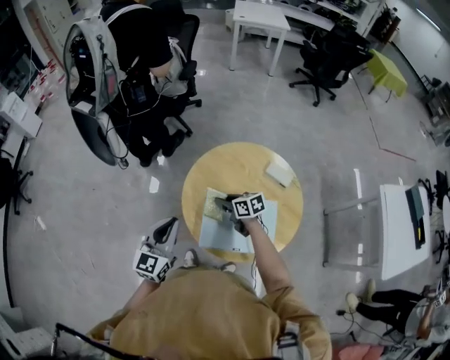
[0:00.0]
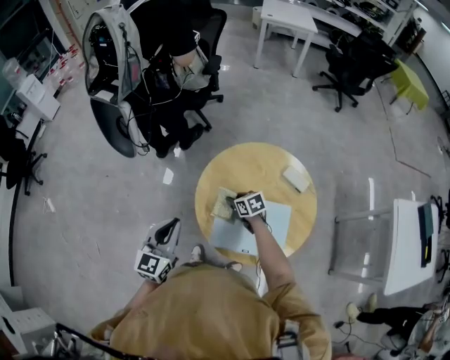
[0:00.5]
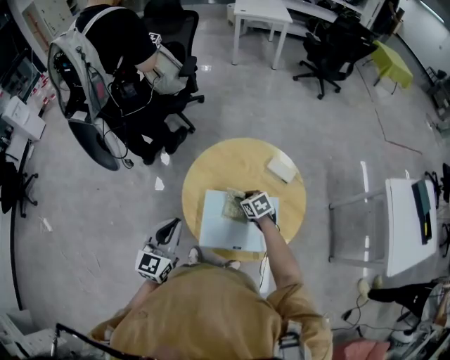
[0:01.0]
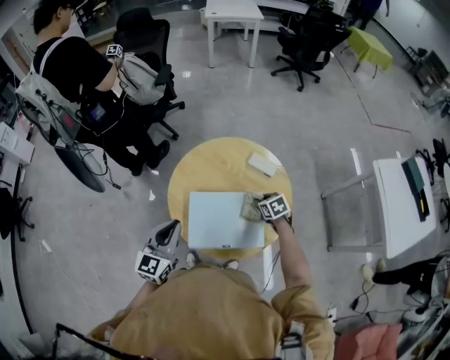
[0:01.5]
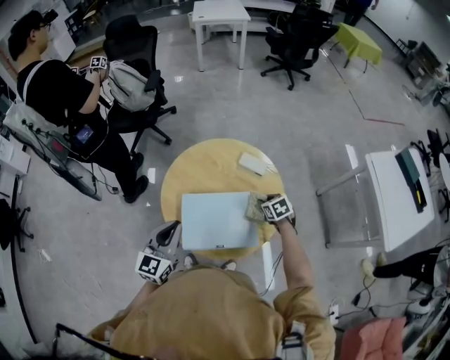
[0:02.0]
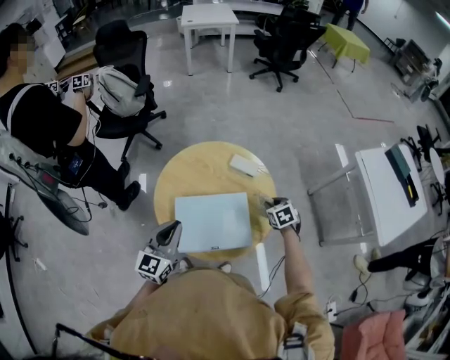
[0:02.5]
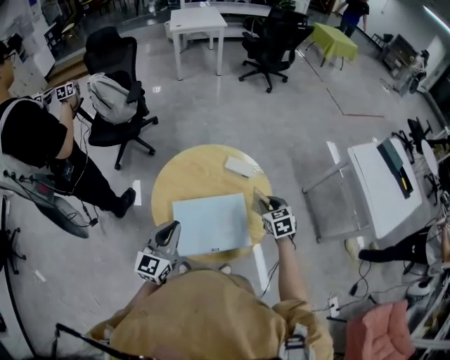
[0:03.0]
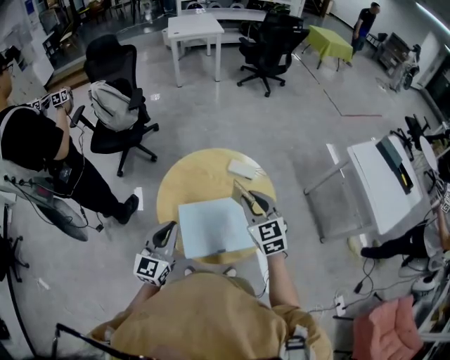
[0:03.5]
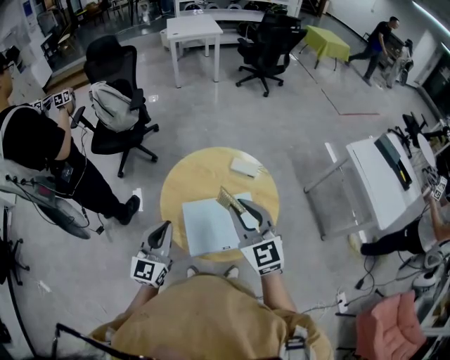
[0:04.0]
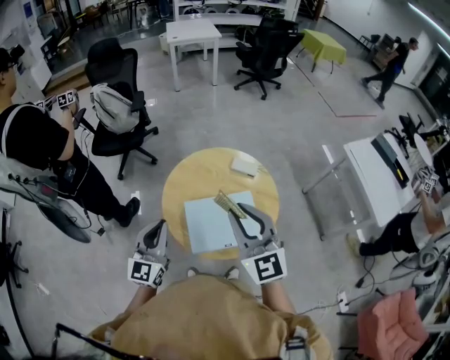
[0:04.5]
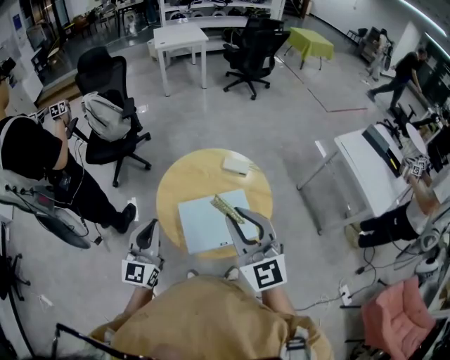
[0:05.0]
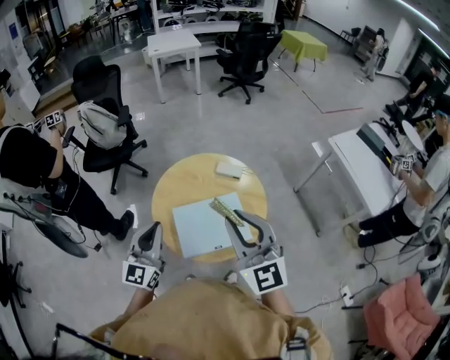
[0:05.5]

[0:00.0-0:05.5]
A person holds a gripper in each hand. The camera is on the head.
0:00.0 to 0:02.0: The left gripper heads to the right, covering some 10 cm. Meanwhile the right gripper is displaced to the right by some 30 cm, and turns by approximately 30 degrees.
0:02.0 to 0:03.5: The right gripper heads upward, covering some 30 cm, and angles its fingers upward, by roughly 40 degrees, while the left gripper ends up some 5 cm from where it was.
0:03.5 to 0:05.5: The left gripper moves upward, some 5 cm, while the right gripper shifts roughly 20 cm backward and upward, and swivels approximately 20 degrees.

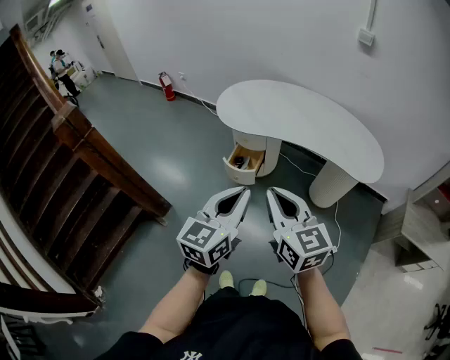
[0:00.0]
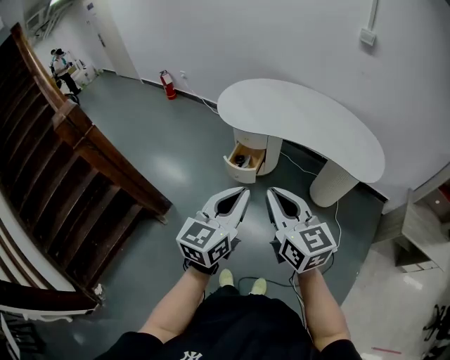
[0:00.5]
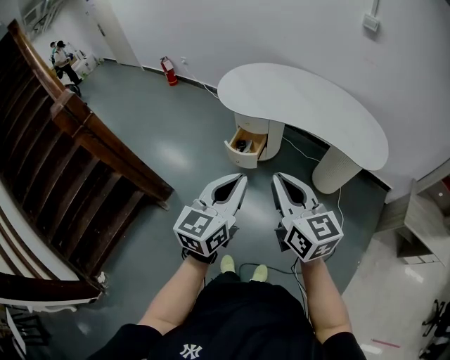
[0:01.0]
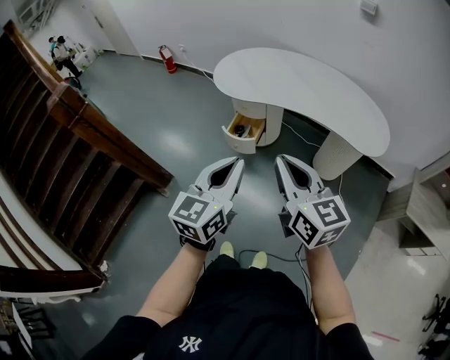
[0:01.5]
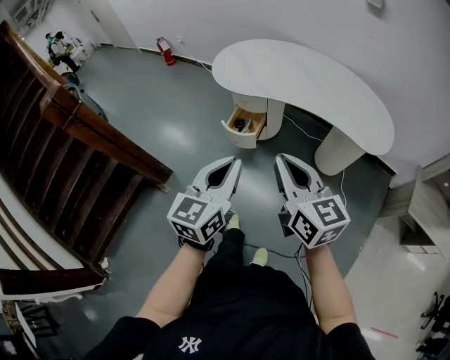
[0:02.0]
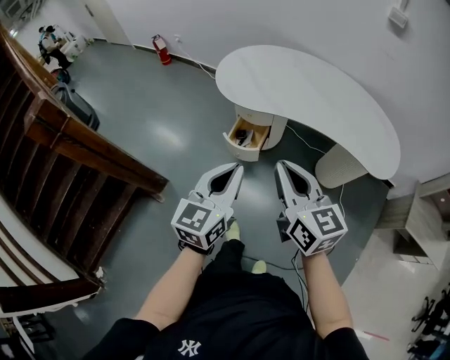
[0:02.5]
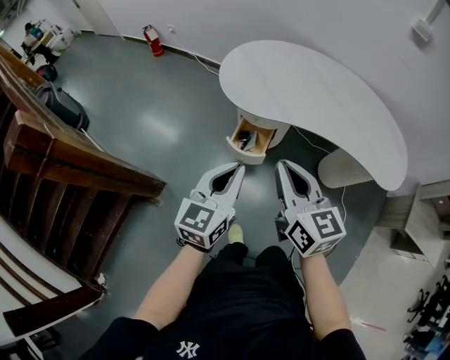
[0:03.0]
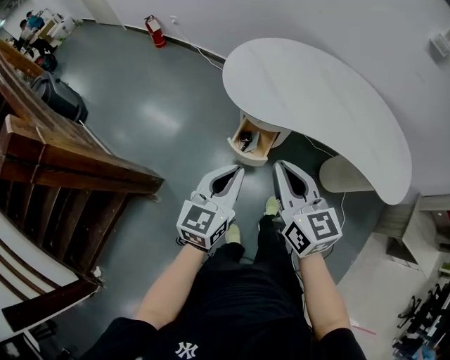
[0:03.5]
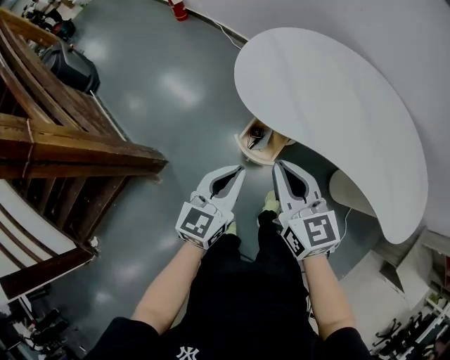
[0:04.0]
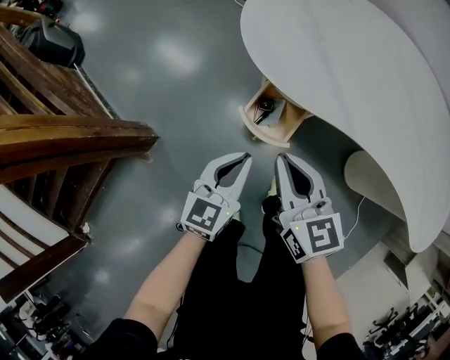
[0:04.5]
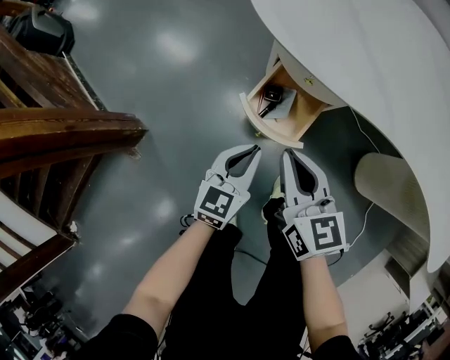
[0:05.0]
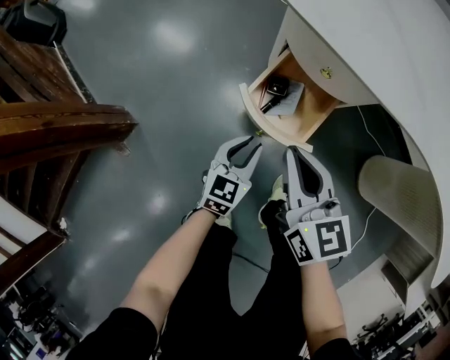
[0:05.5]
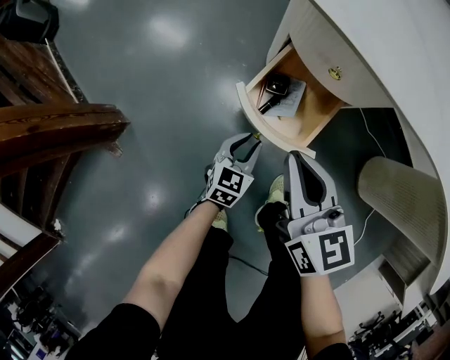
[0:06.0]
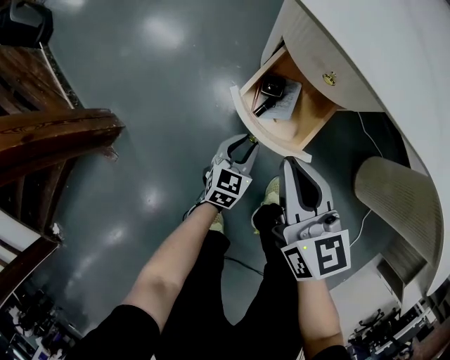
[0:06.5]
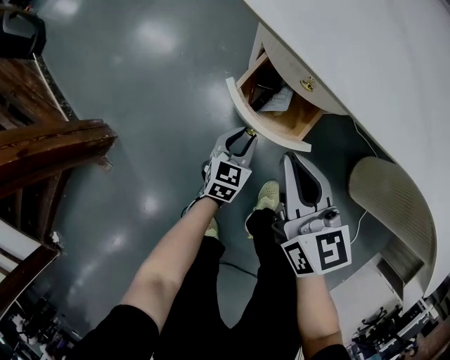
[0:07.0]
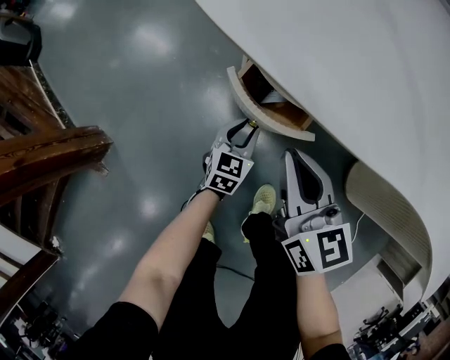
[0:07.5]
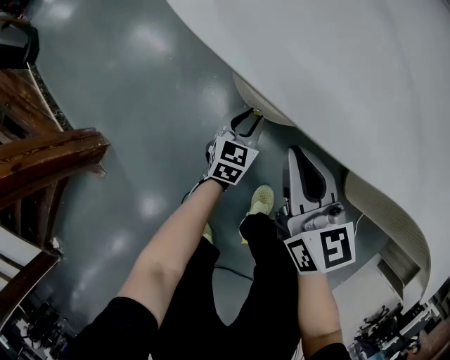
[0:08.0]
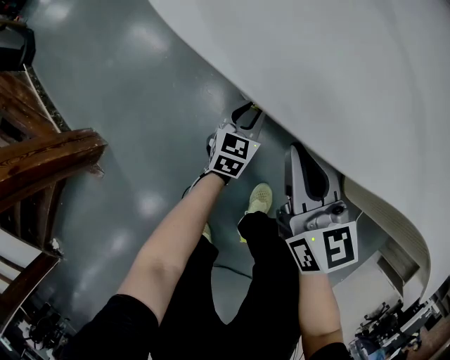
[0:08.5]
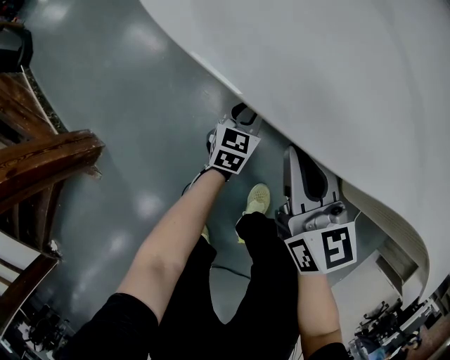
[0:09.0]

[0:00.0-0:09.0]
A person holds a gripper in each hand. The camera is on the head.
0:00.0 to 0:02.0: The right gripper shifts approximately 5 cm to the right.
0:02.0 to 0:04.5: The grippers both shift forward and downward by about 50 cm.
0:04.5 to 0:07.0: The right gripper is displaced downward by roughly 25 cm; the left gripper shifts approximately 40 cm downward, and opens its fingers.
0:07.0 to 0:09.0: The right gripper moves to the right, about 5 cm, while the left gripper heads forward and to the right, covering some 15 cm.

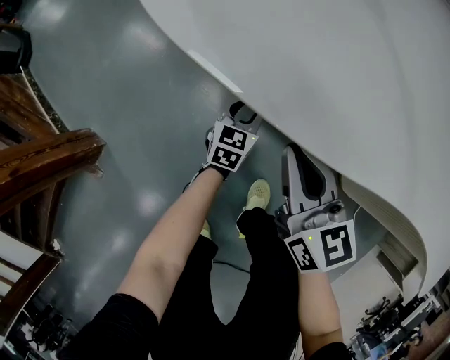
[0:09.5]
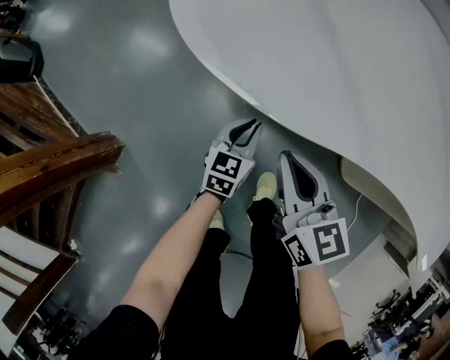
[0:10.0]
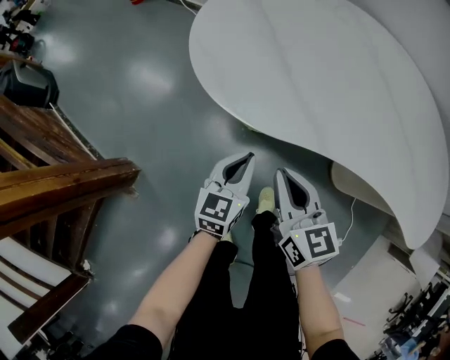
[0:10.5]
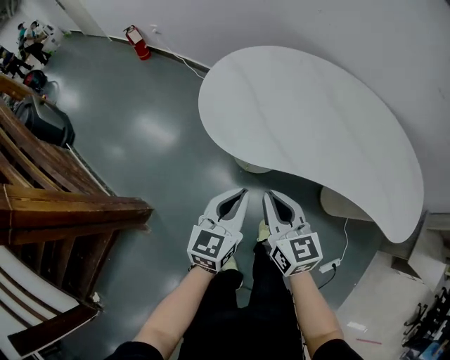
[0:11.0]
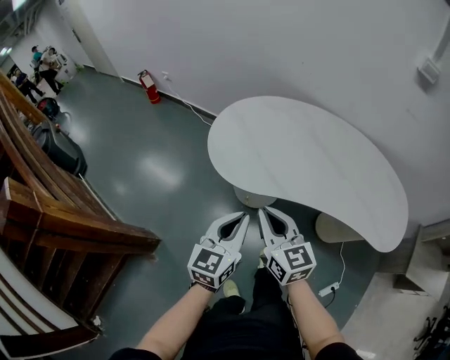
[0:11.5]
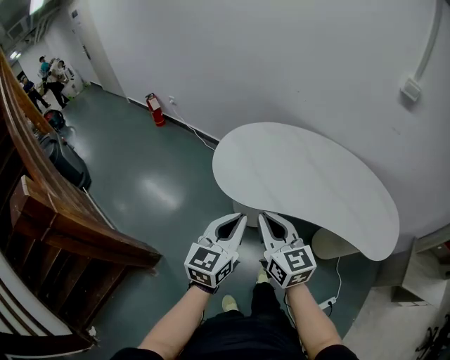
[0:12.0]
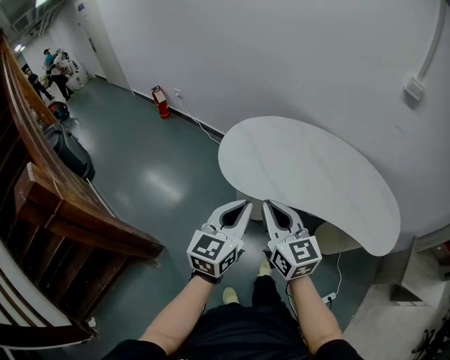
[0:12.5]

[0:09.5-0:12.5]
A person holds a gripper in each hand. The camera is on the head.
0:09.5 to 0:11.0: The right gripper heads upward, covering roughly 30 cm. Meanwhile the left gripper heads upward, covering roughly 50 cm, and closes.
0:11.0 to 0:12.5: Both grippers move upward, about 25 cm.

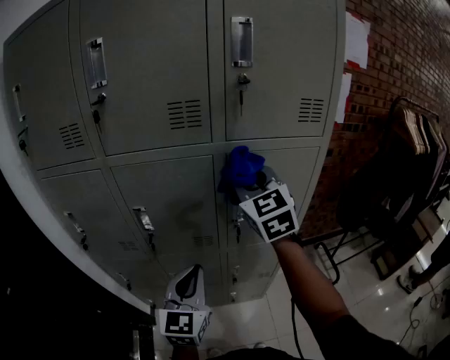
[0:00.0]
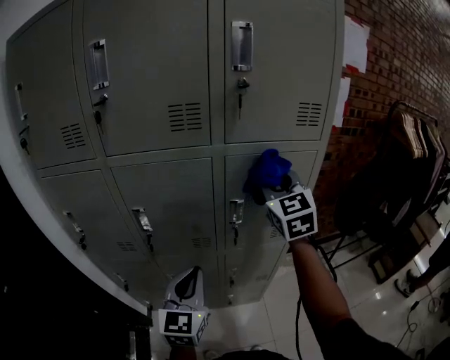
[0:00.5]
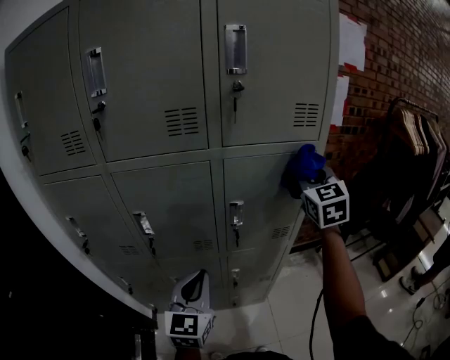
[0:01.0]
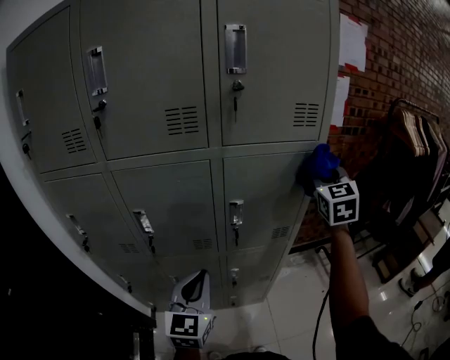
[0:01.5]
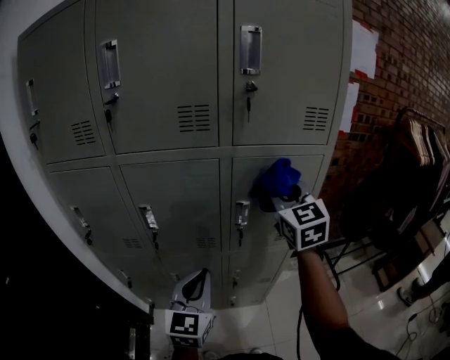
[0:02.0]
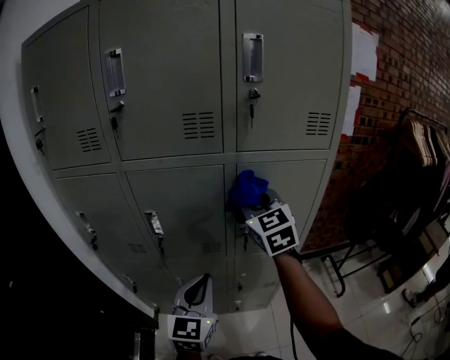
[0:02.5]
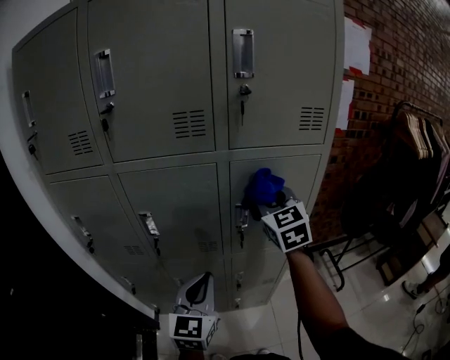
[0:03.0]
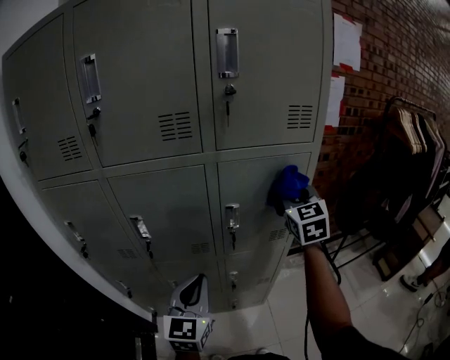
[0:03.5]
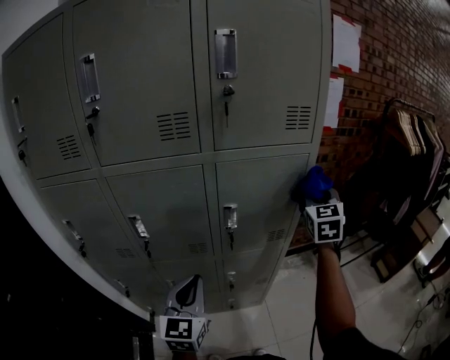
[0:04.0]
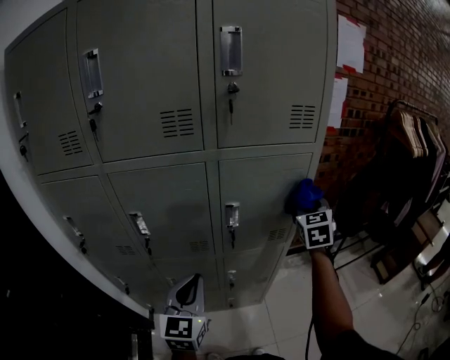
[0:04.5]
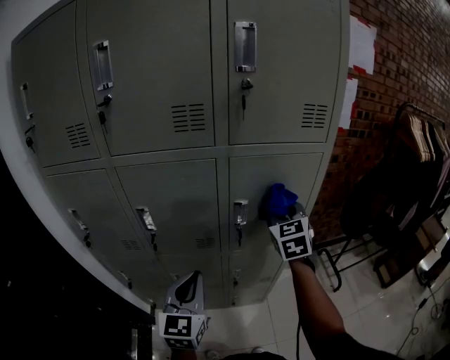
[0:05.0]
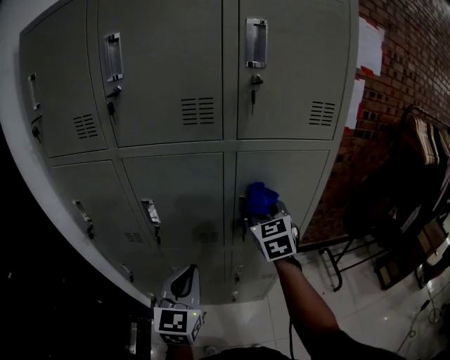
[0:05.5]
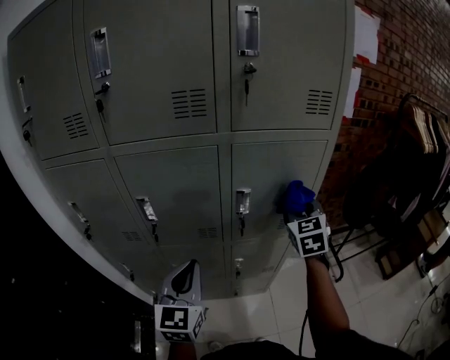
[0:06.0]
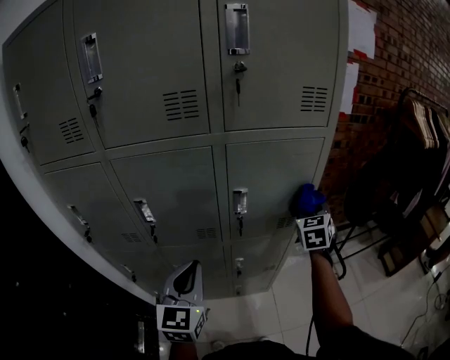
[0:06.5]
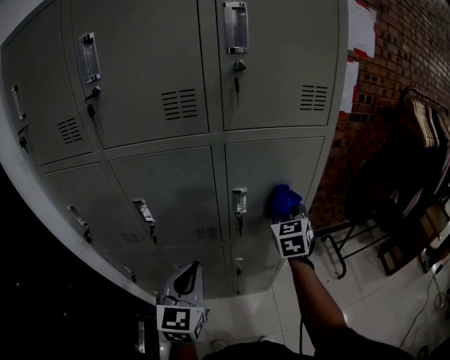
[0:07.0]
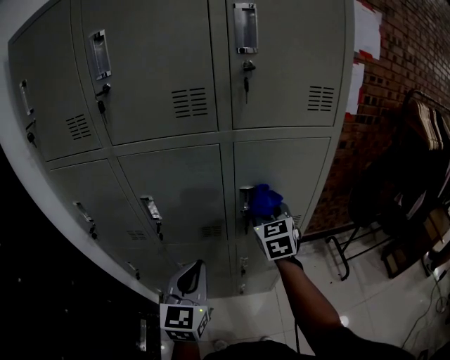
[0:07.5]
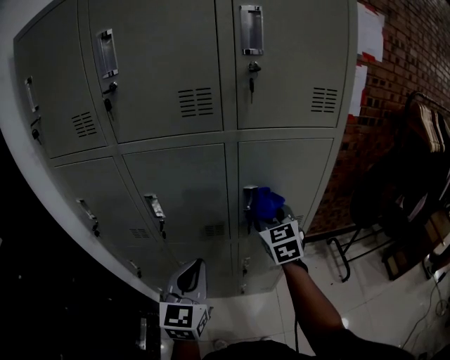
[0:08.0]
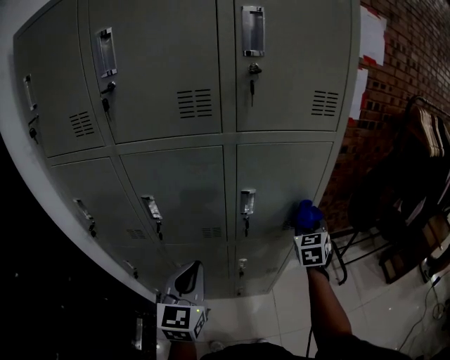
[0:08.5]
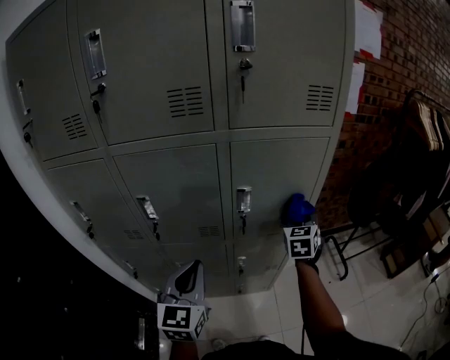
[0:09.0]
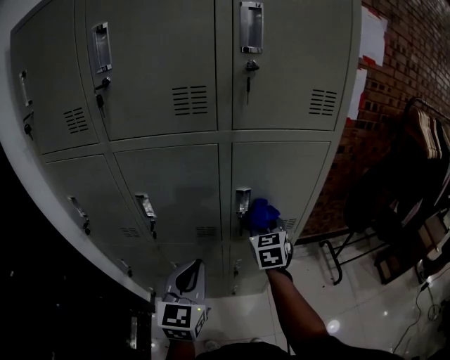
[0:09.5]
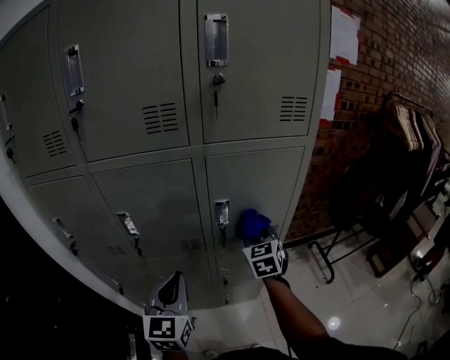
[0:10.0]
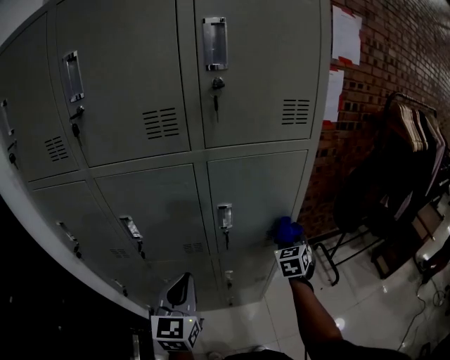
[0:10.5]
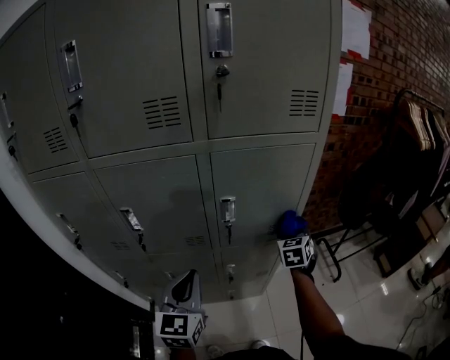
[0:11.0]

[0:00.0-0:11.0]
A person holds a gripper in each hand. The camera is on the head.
0:00.0 to 0:02.0: The right gripper reaches about 25 cm to the right, then returns.
0:02.0 to 0:03.5: The right gripper travels to the right by roughly 10 cm.
0:03.5 to 0:05.5: The right gripper moves to the left and downward, roughly 15 cm.
0:05.5 to 0:07.5: The right gripper goes to the right and returns, roughly 20 cm each way.
0:07.5 to 0:09.0: The right gripper is displaced to the right and downward by approximately 15 cm.
0:09.0 to 0:11.0: The right gripper travels downward by some 5 cm, and reaches approximately 10 cm to the left, then returns.
